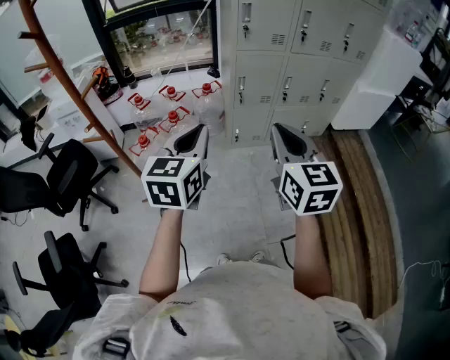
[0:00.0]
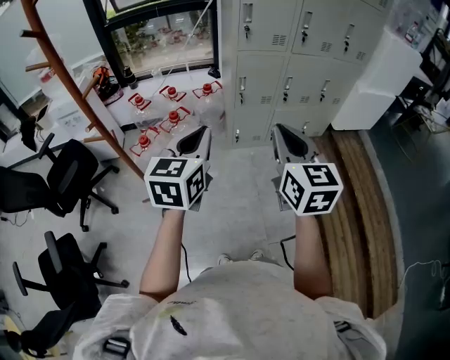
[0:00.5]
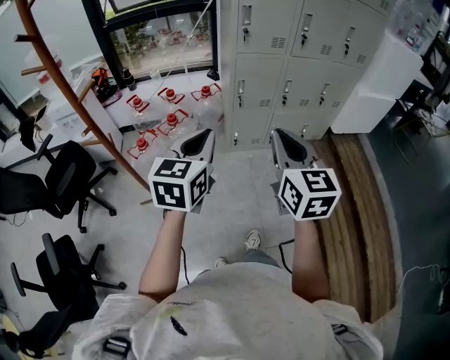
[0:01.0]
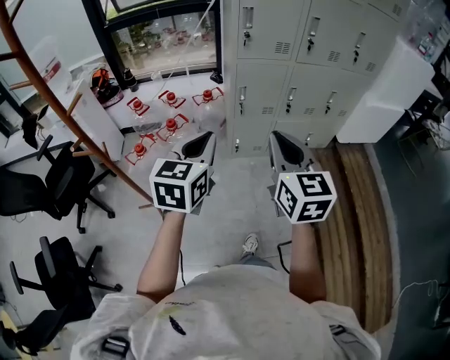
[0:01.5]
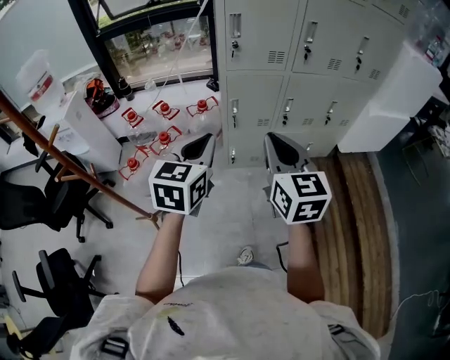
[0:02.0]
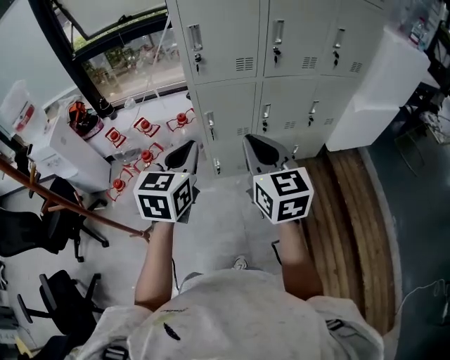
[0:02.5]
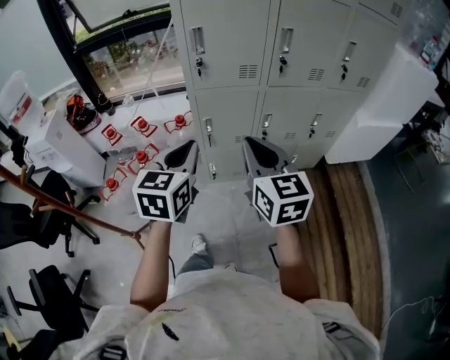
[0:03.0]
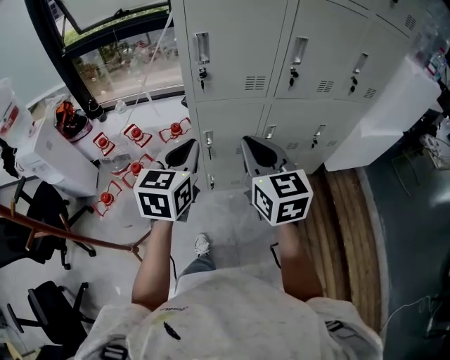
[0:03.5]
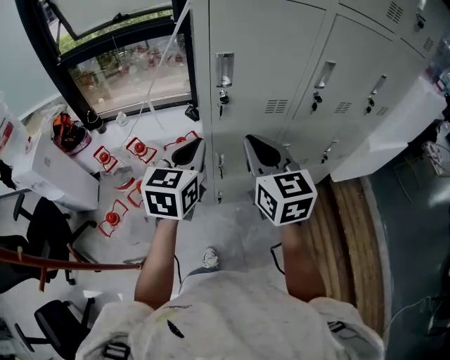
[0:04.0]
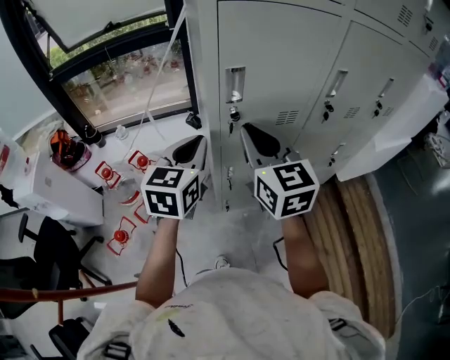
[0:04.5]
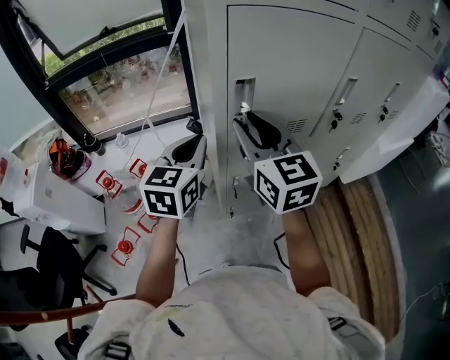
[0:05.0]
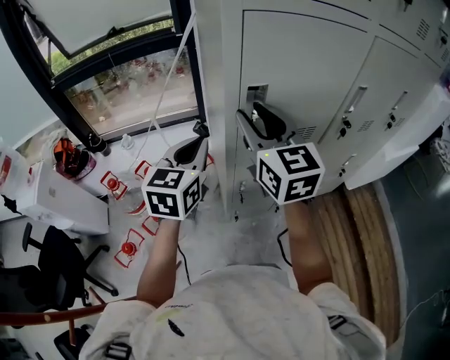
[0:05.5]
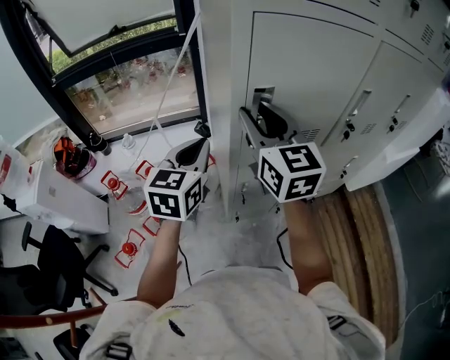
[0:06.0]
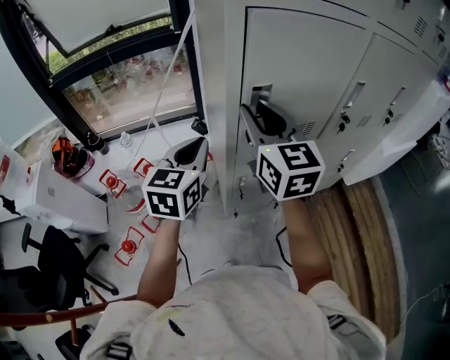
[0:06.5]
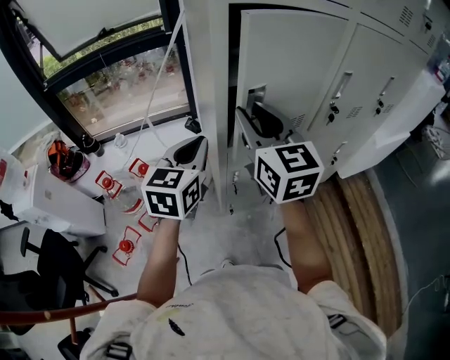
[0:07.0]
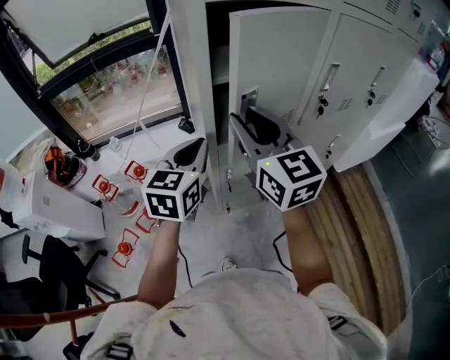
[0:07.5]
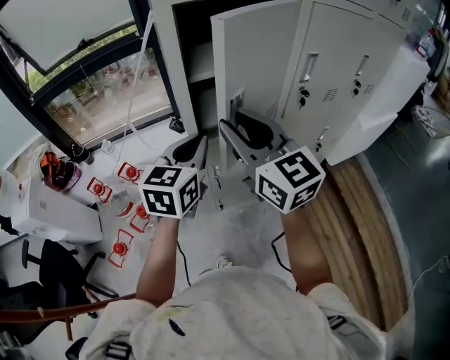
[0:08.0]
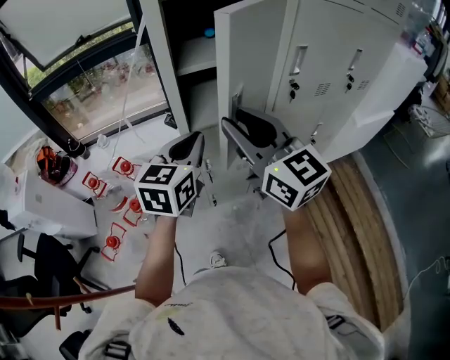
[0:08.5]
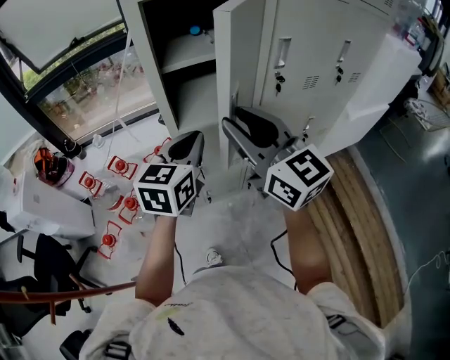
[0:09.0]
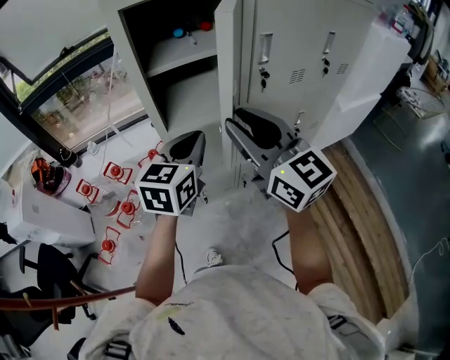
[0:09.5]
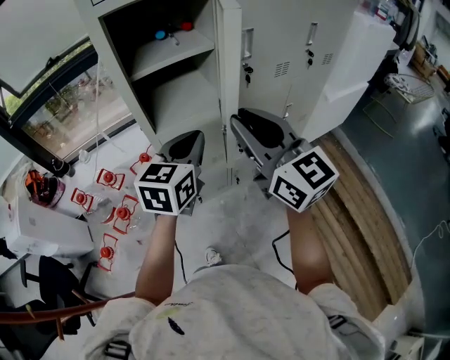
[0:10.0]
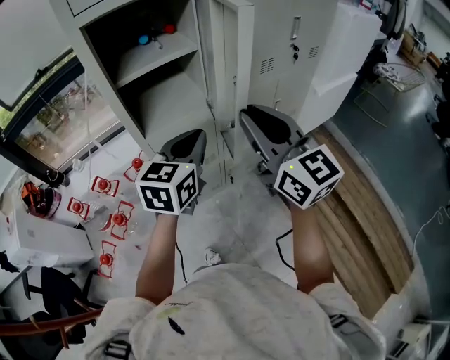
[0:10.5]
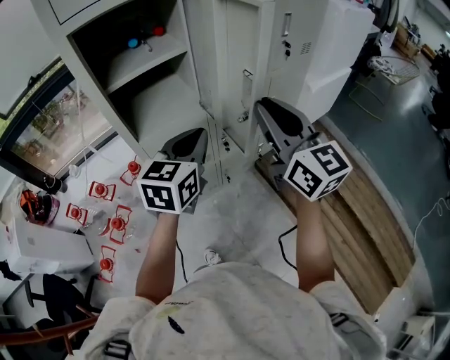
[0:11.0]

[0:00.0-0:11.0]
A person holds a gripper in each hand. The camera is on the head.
0:00.0 to 0:02.0: The left gripper heads forward and to the right, covering roughly 20 cm. Meanwhile the right gripper travels forward by approximately 15 cm.
0:02.0 to 0:03.5: The grippers both shift forward by about 20 cm.
0:03.5 to 0:05.5: The grippers both shift forward and to the left by about 25 cm. The right gripper opens its fingers.
0:05.5 to 0:07.5: The left gripper ends up roughly 5 cm from where it was, while the right gripper moves backward, roughly 5 cm.
0:07.5 to 0:09.0: Both grippers travel together to the right and backward, about 10 cm.
0:09.0 to 0:11.0: The grippers both shift to the right by about 15 cm. The right gripper turns by some 20 degrees.

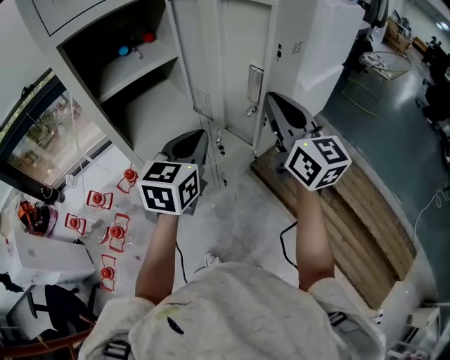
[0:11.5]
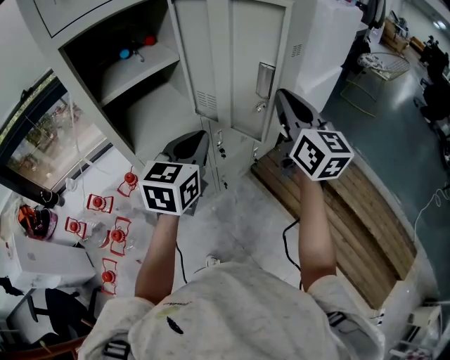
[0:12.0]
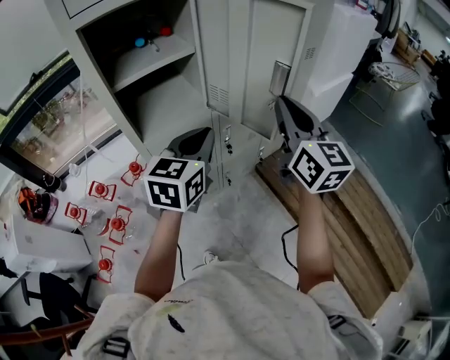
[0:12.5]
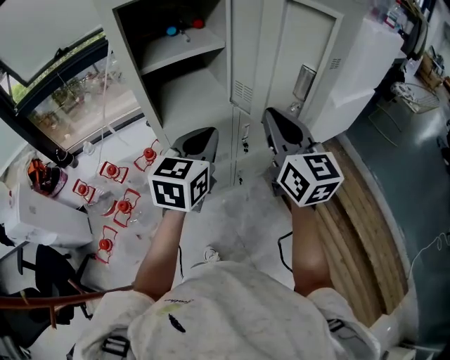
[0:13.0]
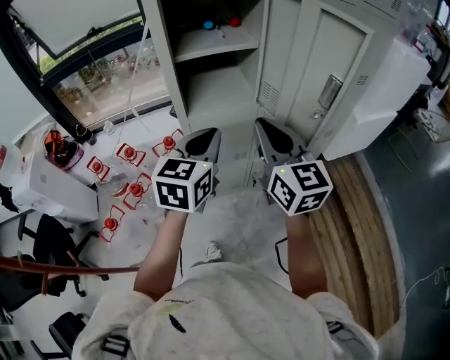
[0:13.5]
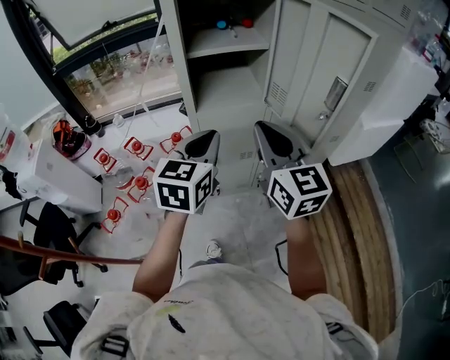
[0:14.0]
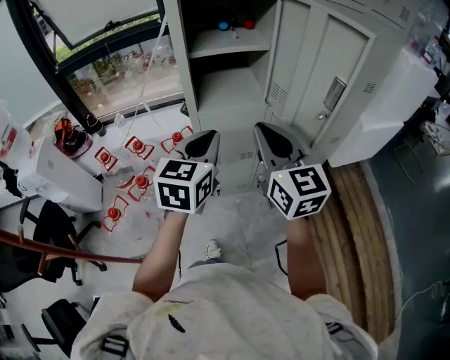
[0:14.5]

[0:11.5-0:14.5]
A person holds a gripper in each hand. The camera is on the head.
0:11.5 to 0:13.0: The left gripper moves to the left, approximately 5 cm. Meanwhile the right gripper shifts about 10 cm to the left.
0:13.0 to 0:14.5: The grippers both shift to the left by about 10 cm.

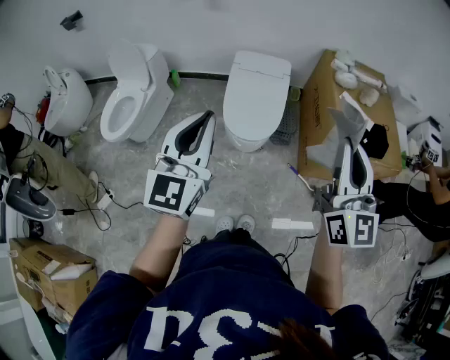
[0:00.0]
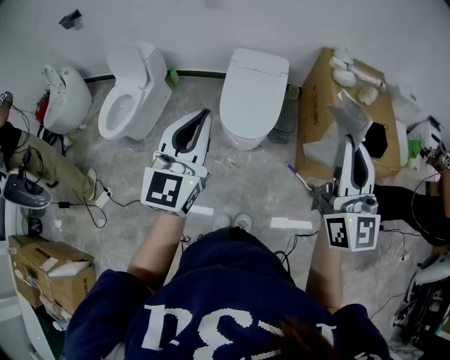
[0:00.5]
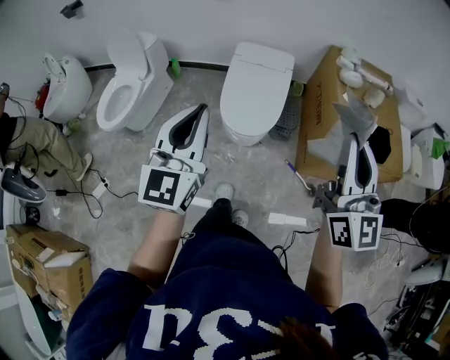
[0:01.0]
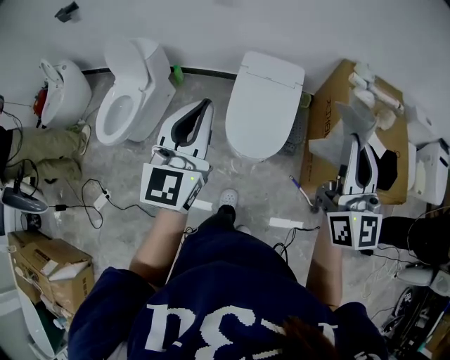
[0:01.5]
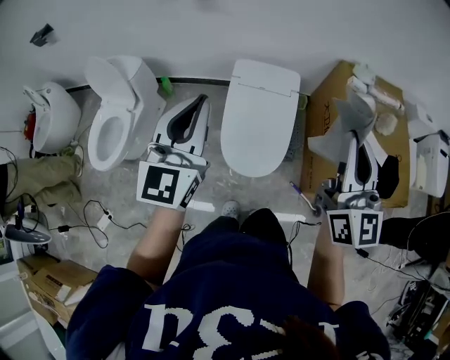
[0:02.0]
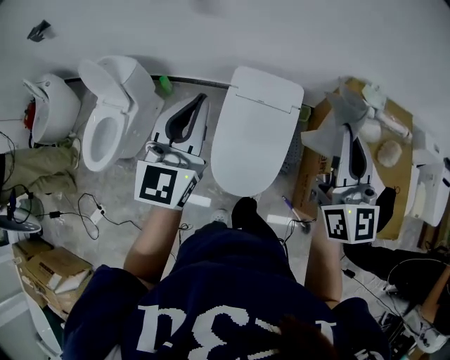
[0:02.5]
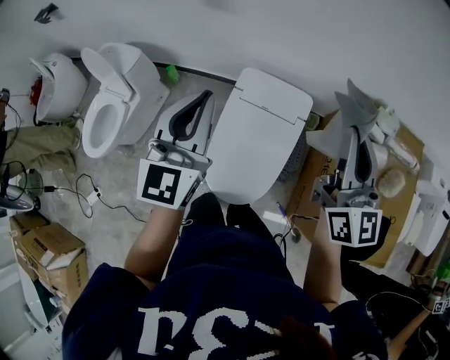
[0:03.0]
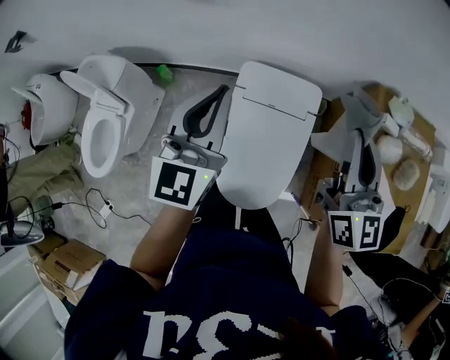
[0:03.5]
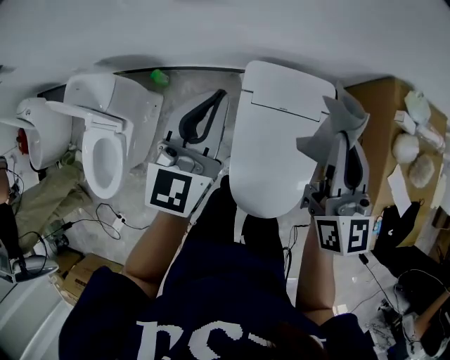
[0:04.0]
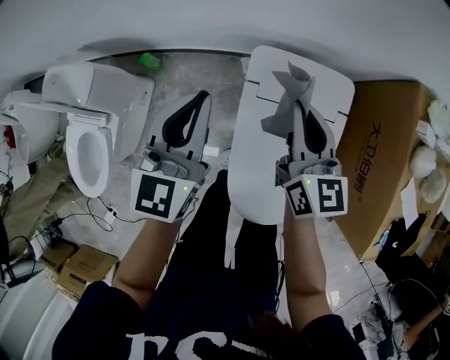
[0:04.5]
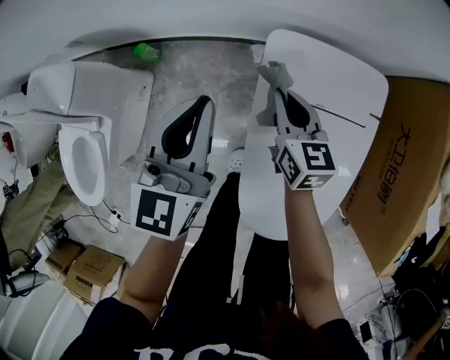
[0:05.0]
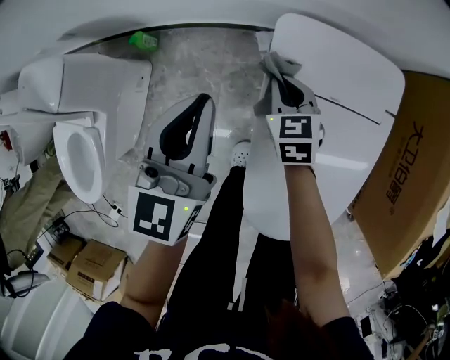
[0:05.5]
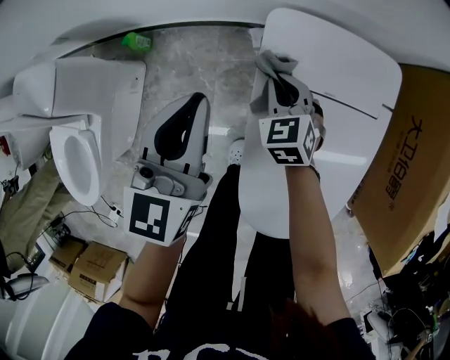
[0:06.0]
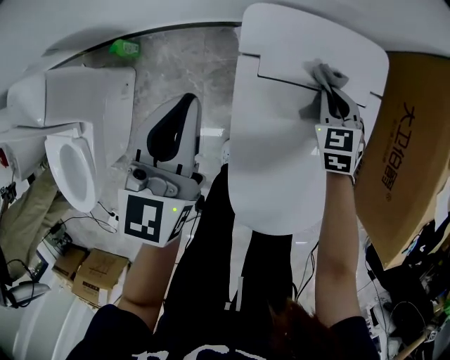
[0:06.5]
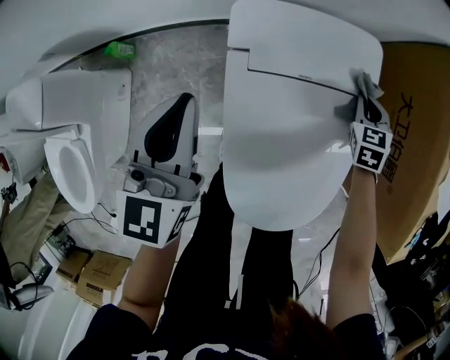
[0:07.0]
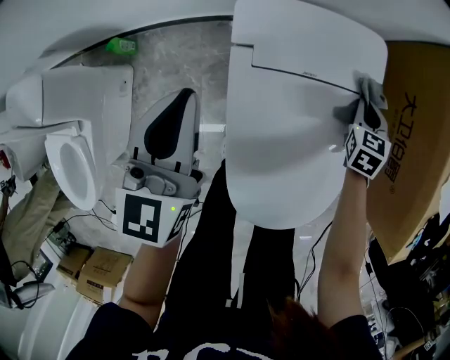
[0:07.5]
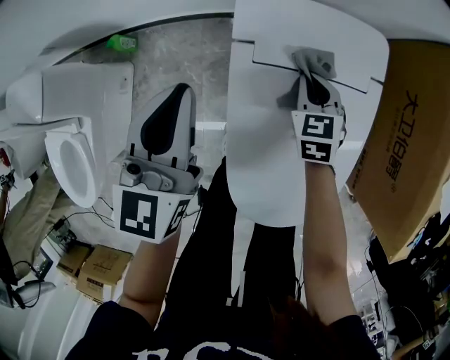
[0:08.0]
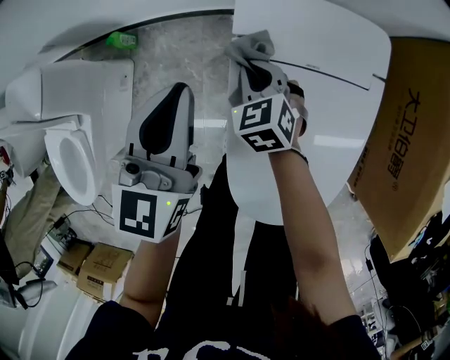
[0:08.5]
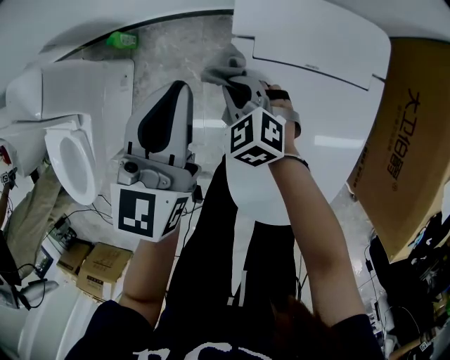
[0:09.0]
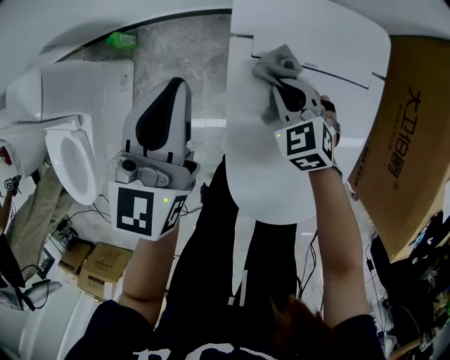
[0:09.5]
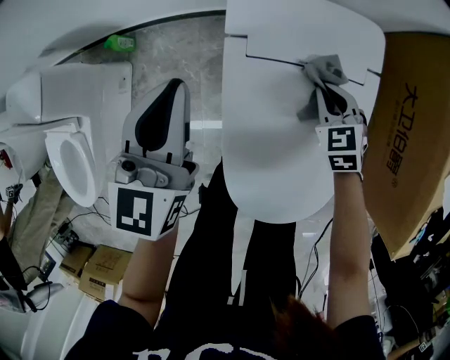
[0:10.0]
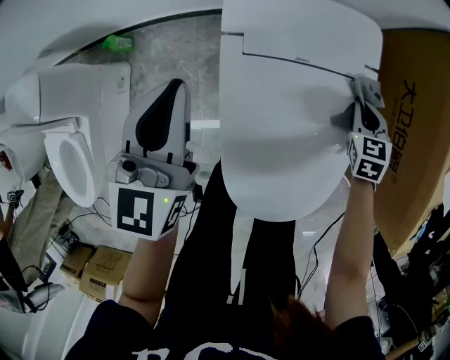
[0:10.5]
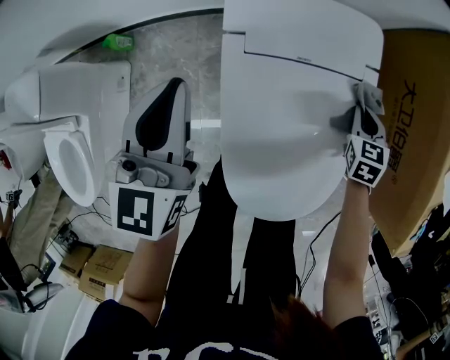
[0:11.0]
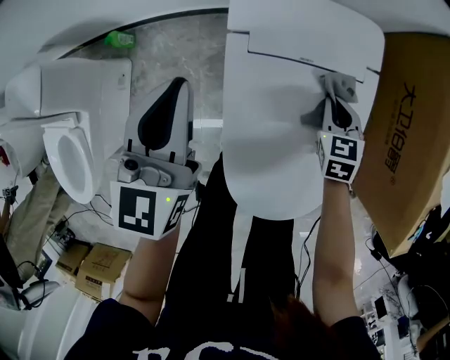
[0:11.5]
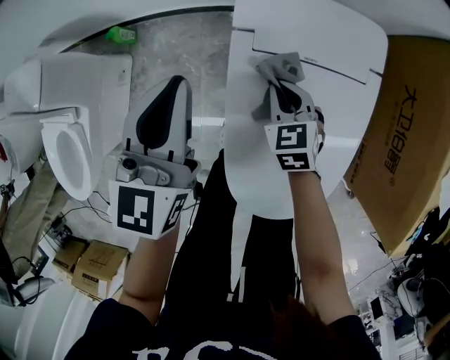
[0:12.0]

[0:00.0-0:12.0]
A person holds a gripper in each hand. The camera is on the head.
0:00.0 to 0:02.0: The grippers both shift forward by approximately 35 cm.
0:02.0 to 0:04.0: The pair of grippers is taken forward, roughly 40 cm. The right gripper is displaced downward by about 20 cm.
0:04.0 to 0:06.0: The left gripper shifts approximately 35 cm downward. The right gripper heads downward, covering roughly 50 cm, and tilts its fingers approximately 40 degrees downward.
0:06.0 to 0:08.0: The right gripper travels to the right by some 15 cm.
0:08.0 to 0:10.0: The right gripper goes to the left and returns, roughly 20 cm each way.
0:10.0 to 0:12.0: The right gripper shifts approximately 10 cm to the left.

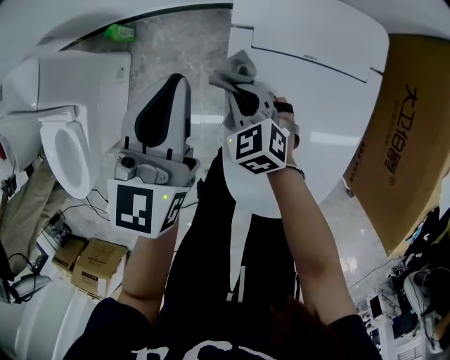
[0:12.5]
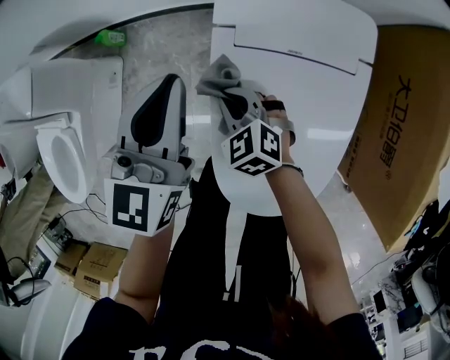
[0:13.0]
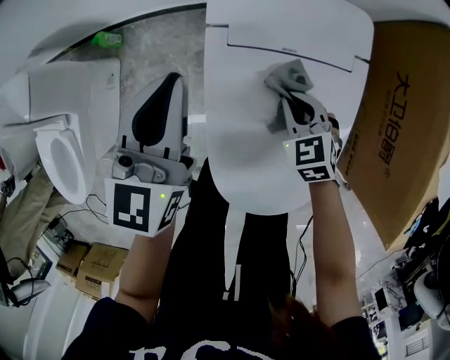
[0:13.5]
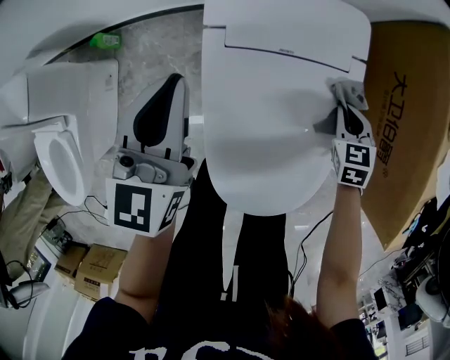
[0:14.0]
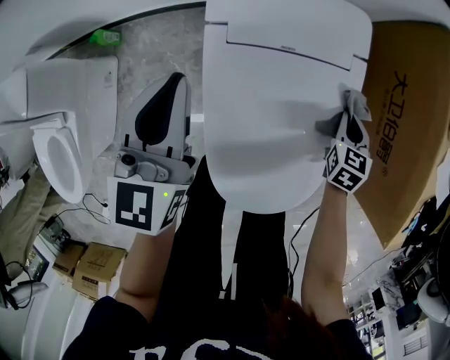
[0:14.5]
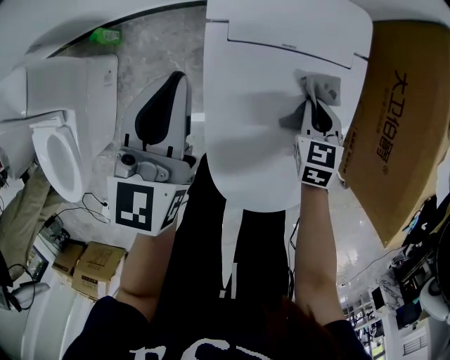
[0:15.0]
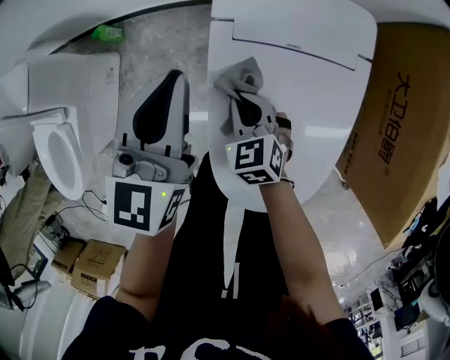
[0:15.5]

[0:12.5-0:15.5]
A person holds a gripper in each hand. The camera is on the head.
0:12.5 to 0:14.0: The left gripper shifts some 5 cm to the right. Meanwhile the right gripper is displaced to the right by roughly 35 cm, and changes its angle by roughly 30 degrees.
0:14.0 to 0:15.5: The right gripper goes approximately 30 cm to the left, and rotates approximately 20 degrees.
